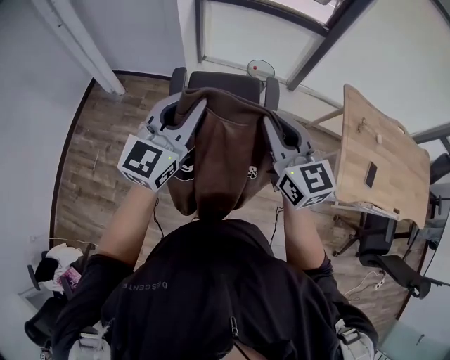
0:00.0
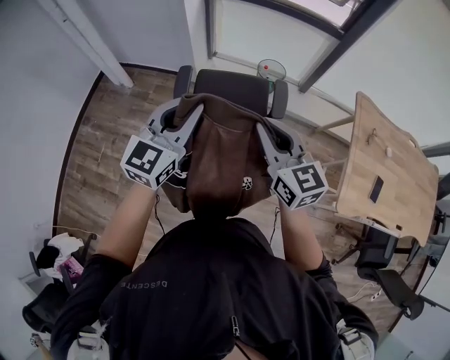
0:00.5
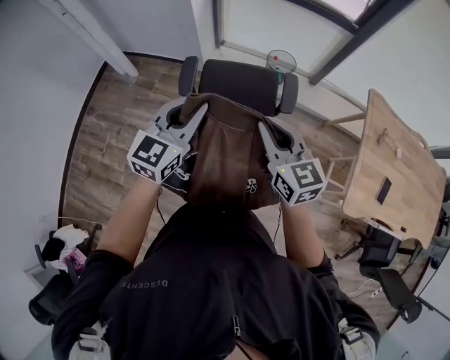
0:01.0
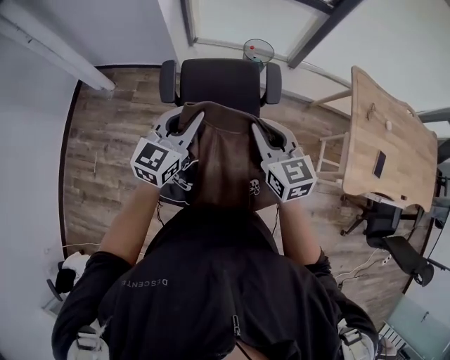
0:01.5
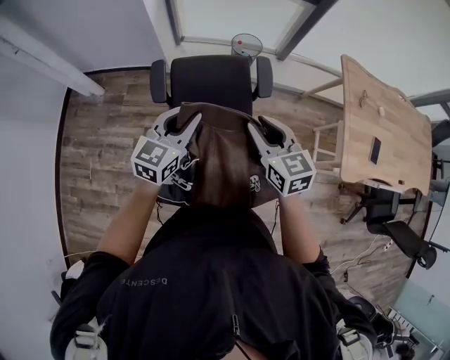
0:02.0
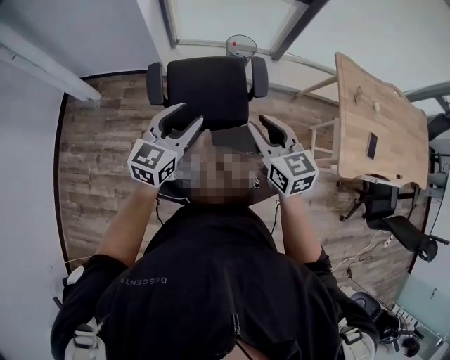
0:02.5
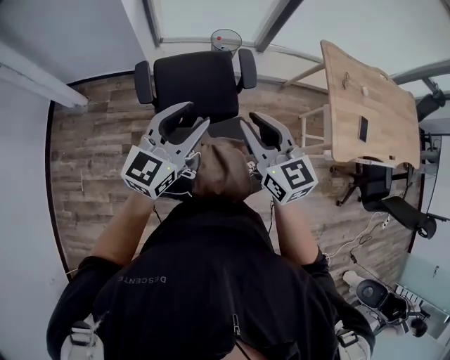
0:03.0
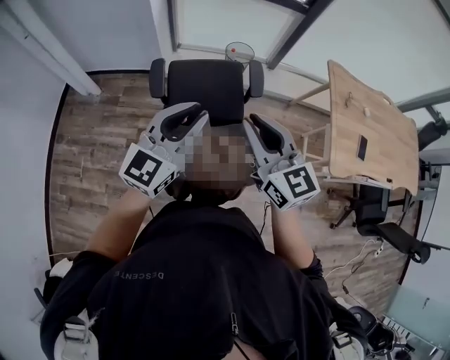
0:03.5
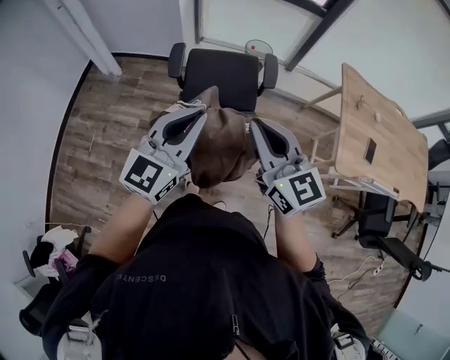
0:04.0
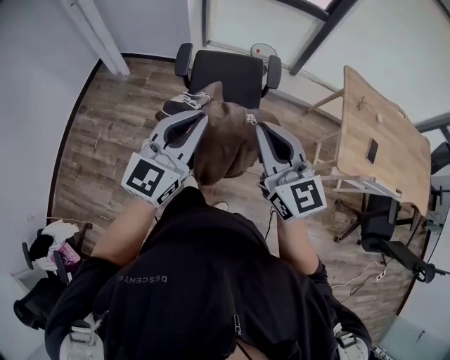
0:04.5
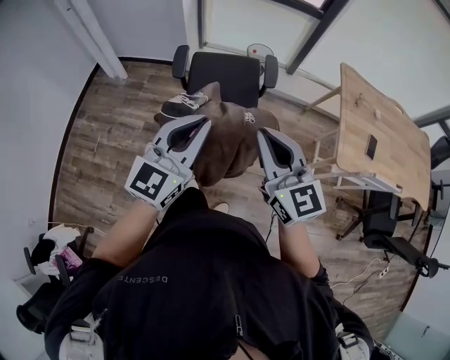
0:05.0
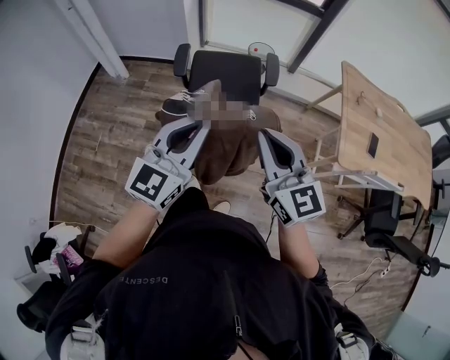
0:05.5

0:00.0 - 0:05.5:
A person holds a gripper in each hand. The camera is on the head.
0:00.0 - 0:02.0: Both grippers move downward and forward, some 20 cm. The right gripper turns by some 20 degrees, and opens its fingers, while the left gripper changes its angle by about 20 degrees.
0:02.0 - 0:03.5: Both grippers move upward and backward, some 15 cm. The left gripper opens, then closes again. The right gripper swivels approximately 20 degrees.
0:03.5 - 0:05.5: Both grippers travel together backward, some 20 cm.

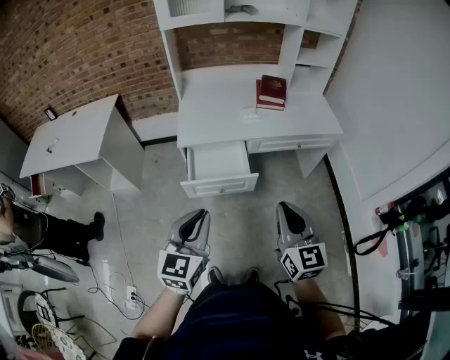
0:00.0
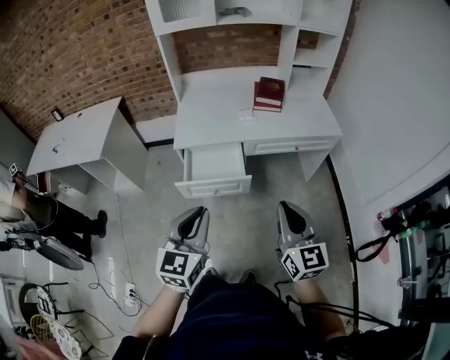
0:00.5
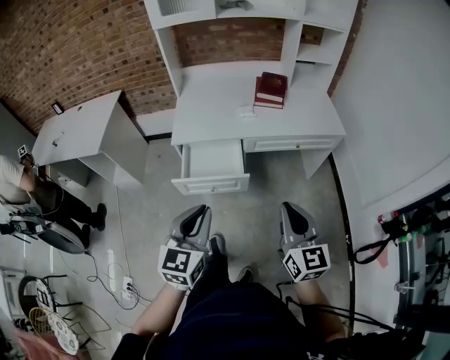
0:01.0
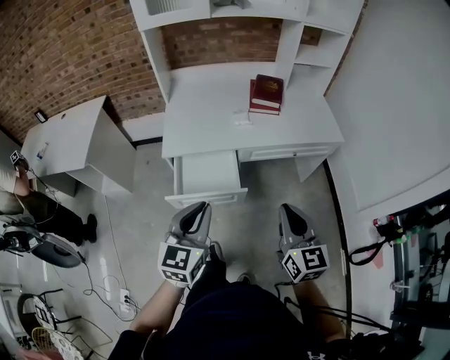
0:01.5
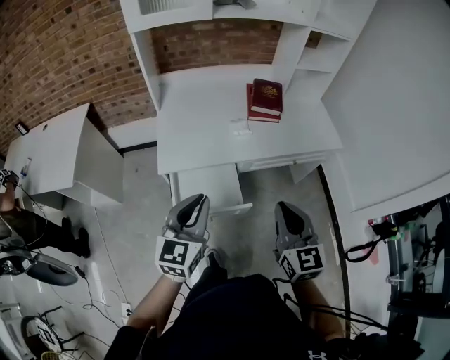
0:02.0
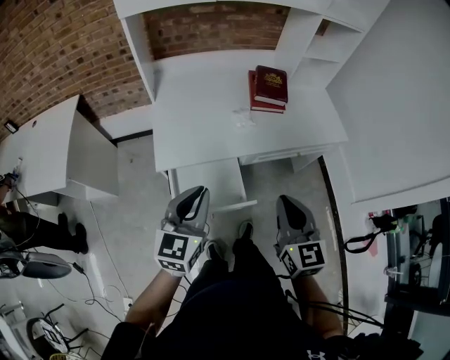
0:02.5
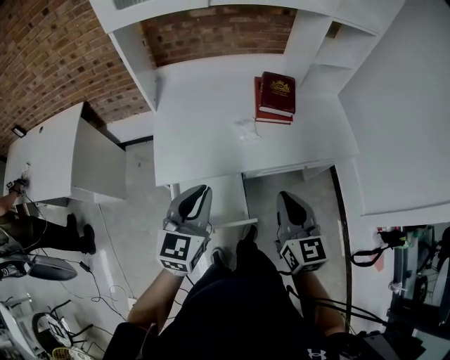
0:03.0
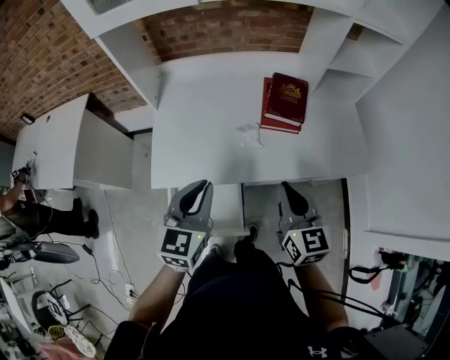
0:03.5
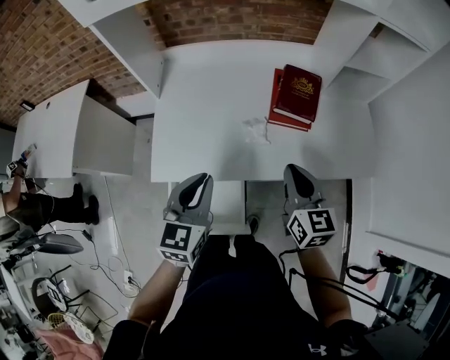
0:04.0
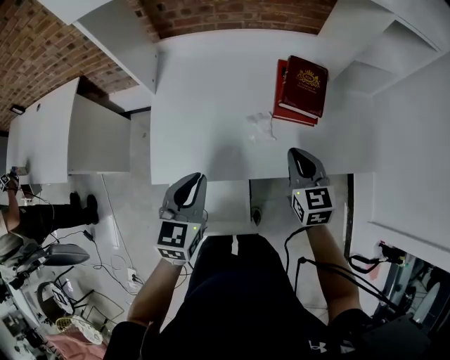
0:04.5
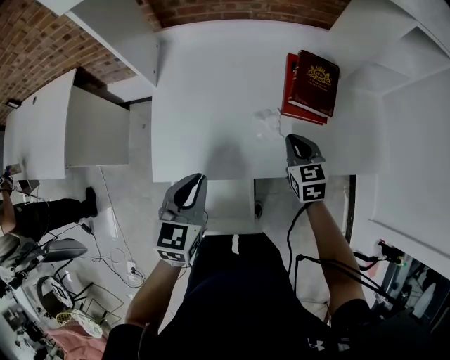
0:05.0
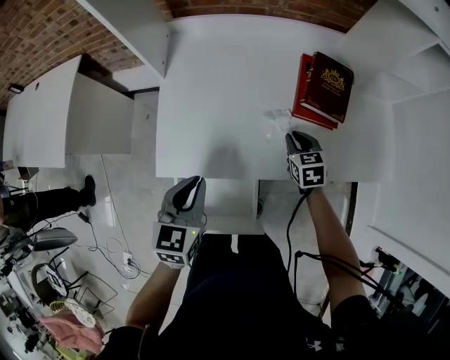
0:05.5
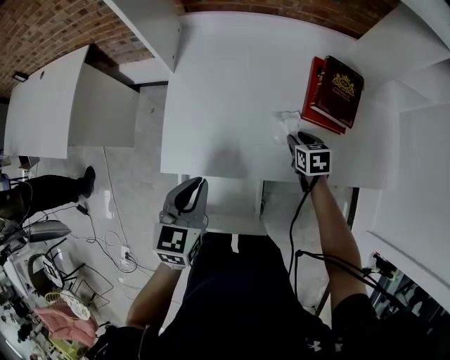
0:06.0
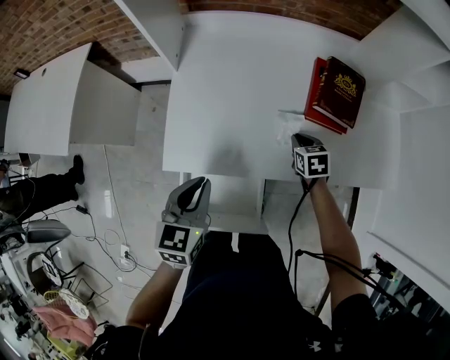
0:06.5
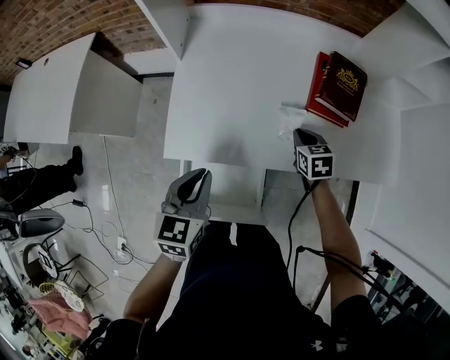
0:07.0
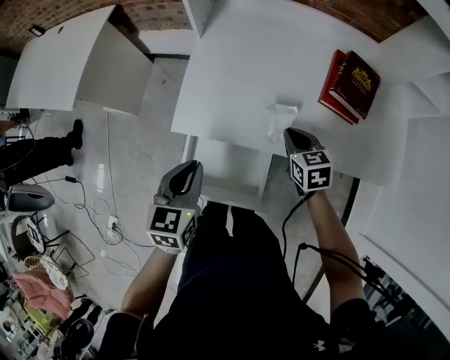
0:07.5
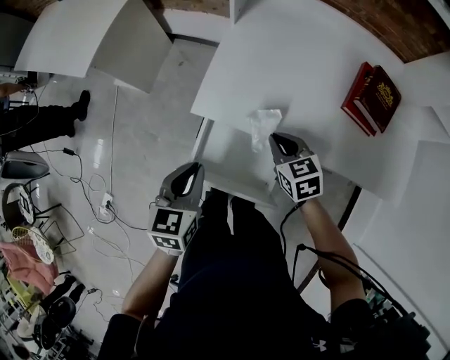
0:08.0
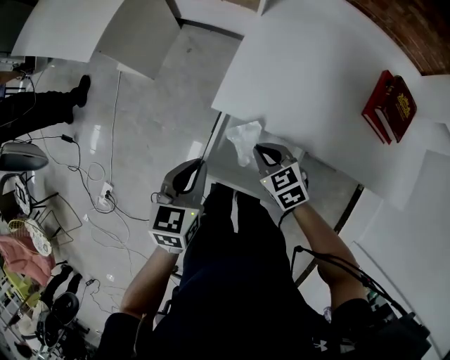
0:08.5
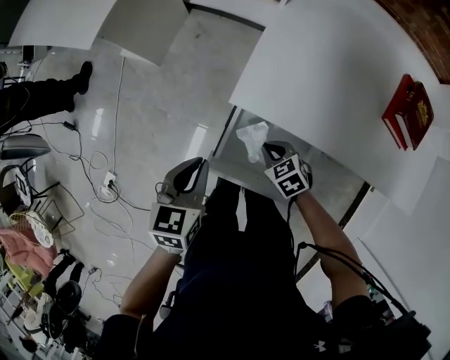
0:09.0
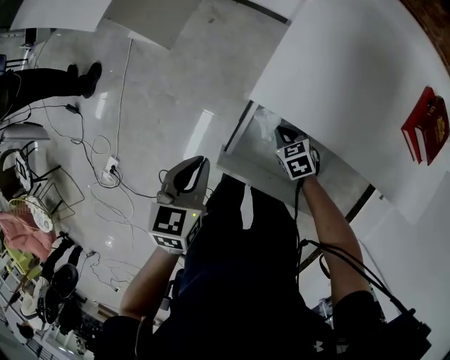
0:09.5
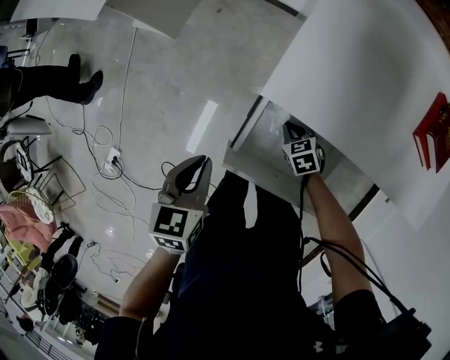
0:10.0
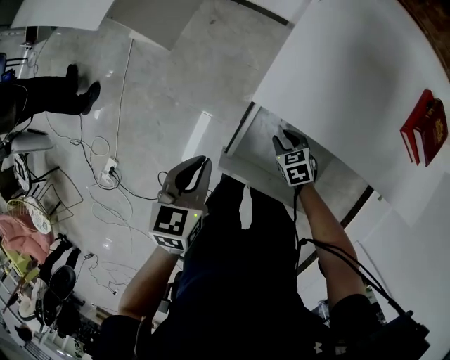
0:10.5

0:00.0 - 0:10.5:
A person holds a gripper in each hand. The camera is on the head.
0:00.0 - 0:02.0: Both grippers move forward, about 20 cm.
0:02.0 - 0:04.0: Both grippers move forward, roughly 25 cm.
0:04.0 - 0:06.5: The right gripper travels downward and forward by some 25 cm, points its fingers roughly 40 degrees further downward, and opens and closes again. The left gripper travels to the left and downward by roughly 15 cm.
0:06.5 - 0:08.5: The right gripper ends up about 35 cm from where it was, and swivels about 40 degrees. Meanwhile the left gripper shifts by approximately 20 cm.
0:08.5 - 0:10.5: The left gripper shifts approximately 10 cm to the left and downward, while the right gripper heads downward, covering about 15 cm, and opens up.

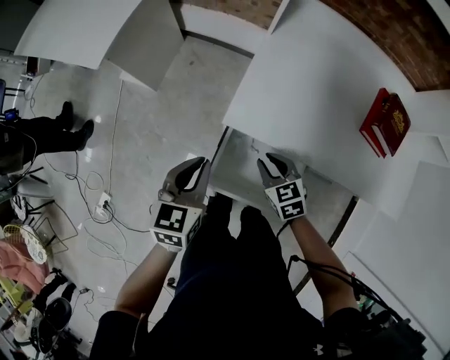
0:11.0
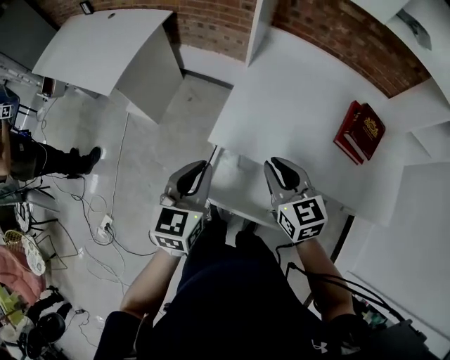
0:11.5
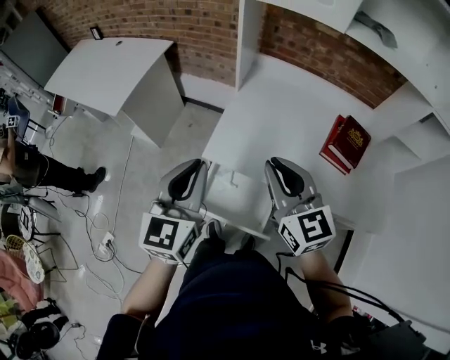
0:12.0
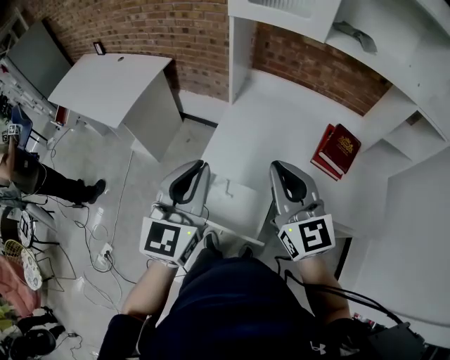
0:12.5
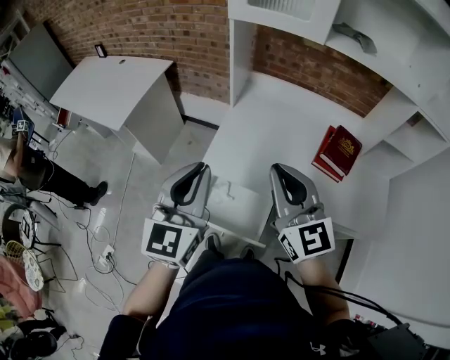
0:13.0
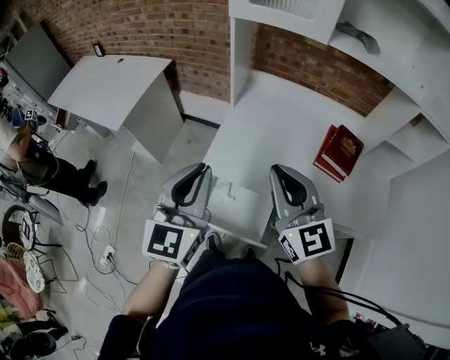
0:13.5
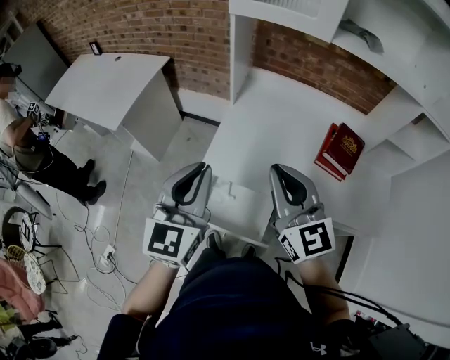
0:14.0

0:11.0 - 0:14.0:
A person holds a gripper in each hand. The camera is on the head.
0:11.0 - 0:12.5: The grippers both shift upward by about 35 cm. The left gripper rotates about 30 degrees. The right gripper tilts its fingers about 50 degrees upward, and closes its fingers.
0:12.5 - 0:14.0: The grippers make only small movements.

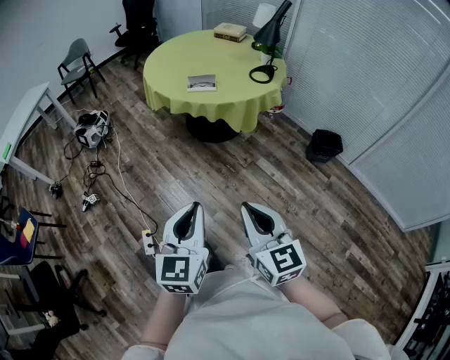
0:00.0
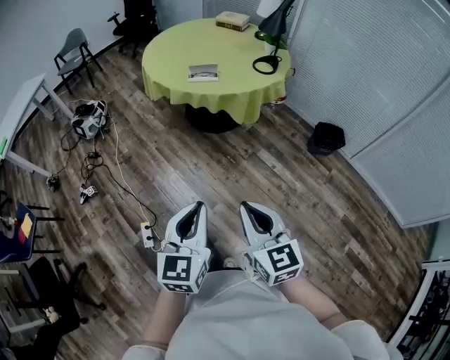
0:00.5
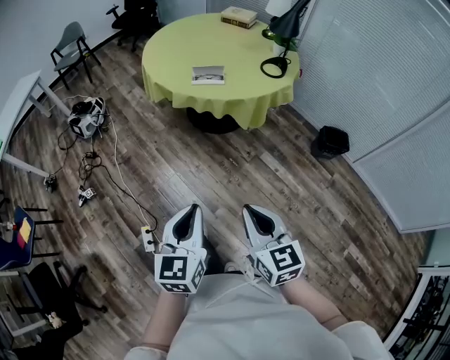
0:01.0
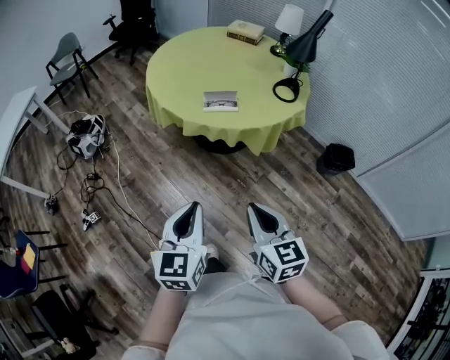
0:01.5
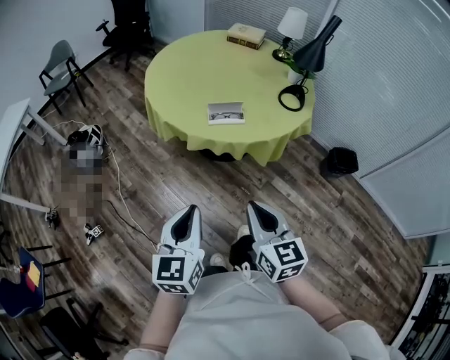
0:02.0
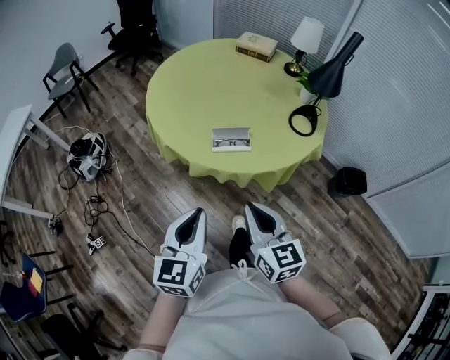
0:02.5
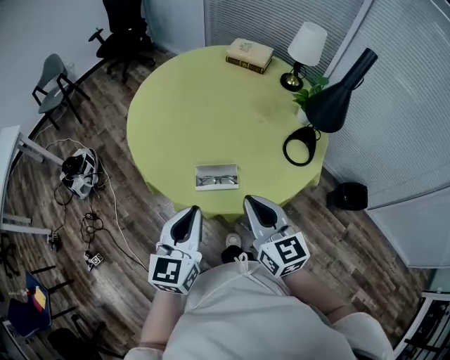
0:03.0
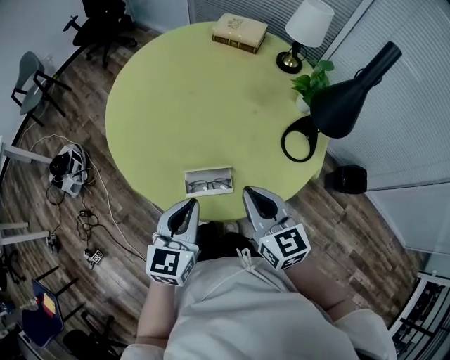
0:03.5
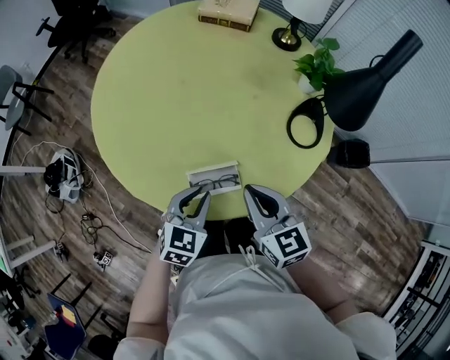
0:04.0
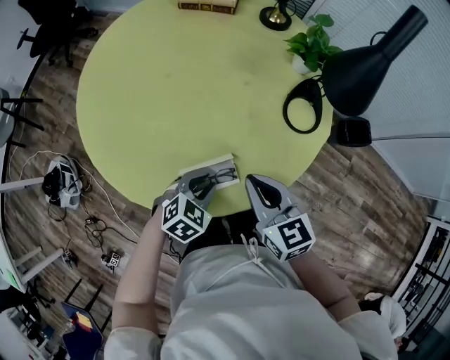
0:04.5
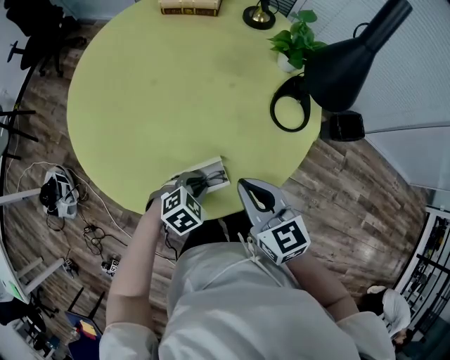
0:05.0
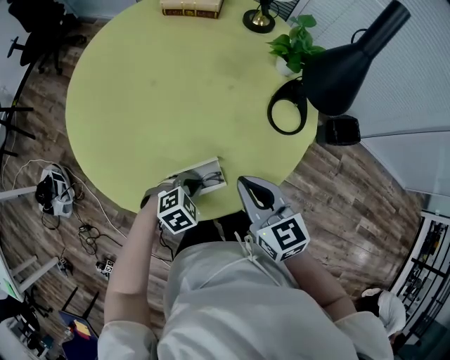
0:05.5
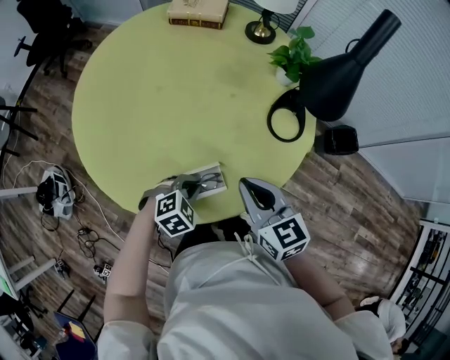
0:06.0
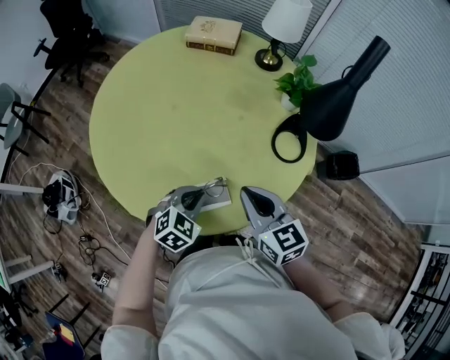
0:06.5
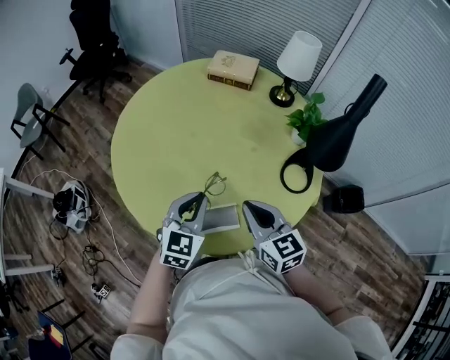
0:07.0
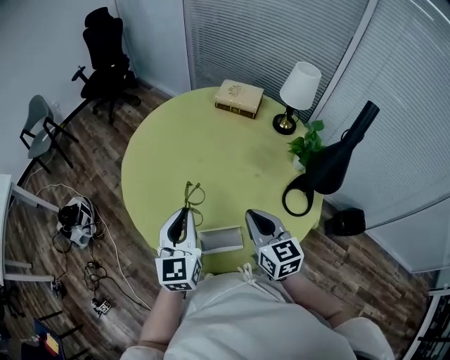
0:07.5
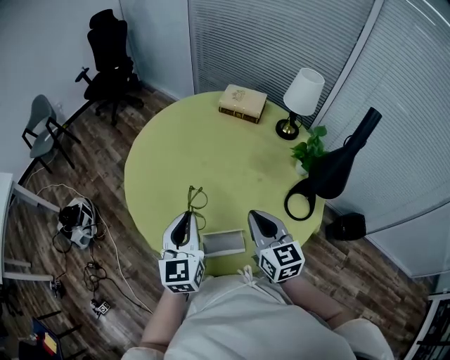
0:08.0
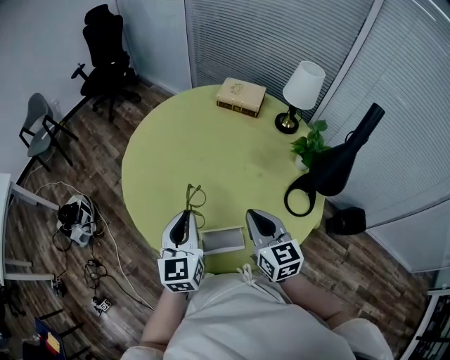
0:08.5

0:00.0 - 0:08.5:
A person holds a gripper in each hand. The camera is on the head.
0:00.0 - 0:02.0: The right gripper moves forward, roughly 35 cm. The left gripper moves forward and to the left, about 40 cm.
0:02.0 - 0:04.0: Both grippers are carried forward, approximately 50 cm. The left gripper rotates approximately 40 degrees.
0:04.0 - 0:06.5: The left gripper travels downward and back again, approximately 10 cm each way, and rotates some 20 degrees.
0:06.5 - 0:08.5: The right gripper shifts some 10 cm forward and upward, while the left gripper moves upward and to the left, some 20 cm, and points its fingers approximately 40 degrees further upward.
